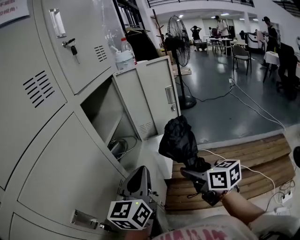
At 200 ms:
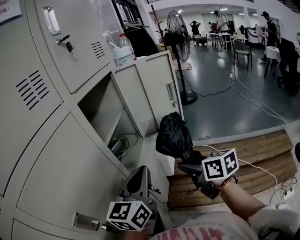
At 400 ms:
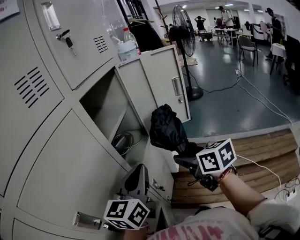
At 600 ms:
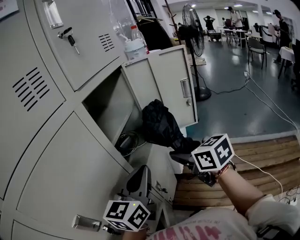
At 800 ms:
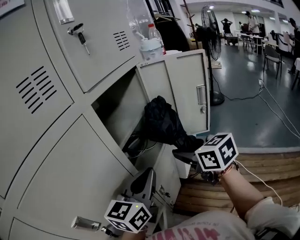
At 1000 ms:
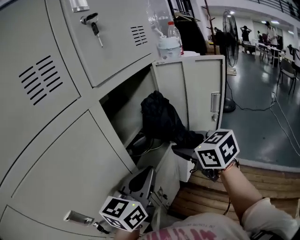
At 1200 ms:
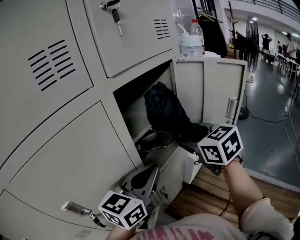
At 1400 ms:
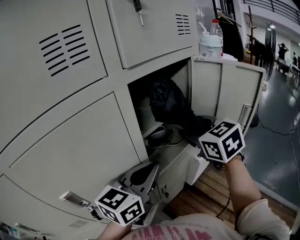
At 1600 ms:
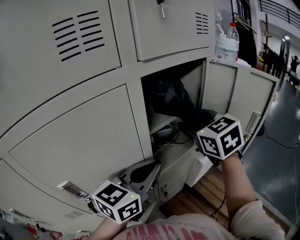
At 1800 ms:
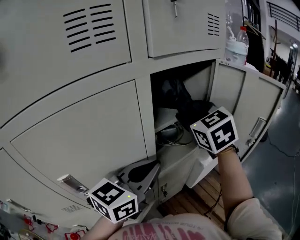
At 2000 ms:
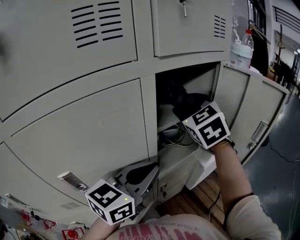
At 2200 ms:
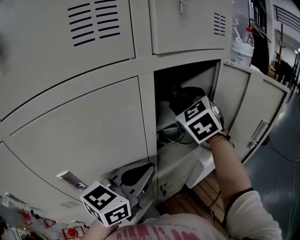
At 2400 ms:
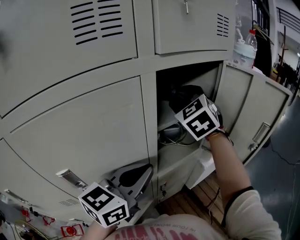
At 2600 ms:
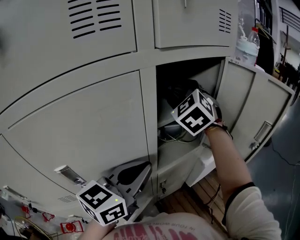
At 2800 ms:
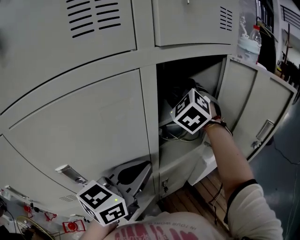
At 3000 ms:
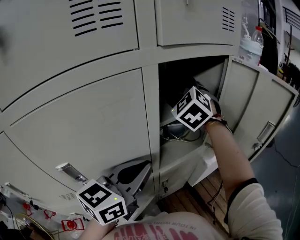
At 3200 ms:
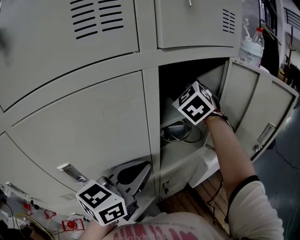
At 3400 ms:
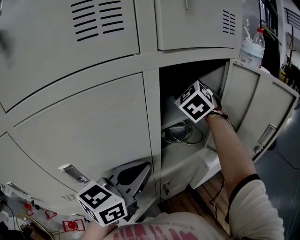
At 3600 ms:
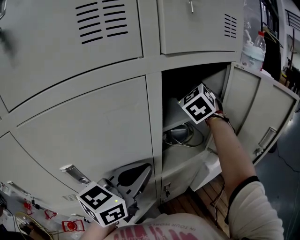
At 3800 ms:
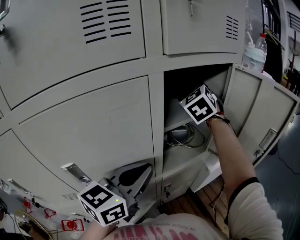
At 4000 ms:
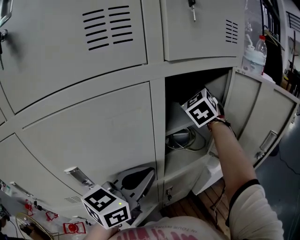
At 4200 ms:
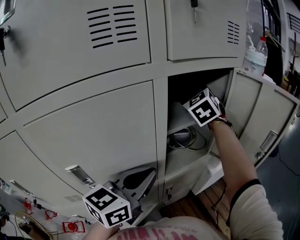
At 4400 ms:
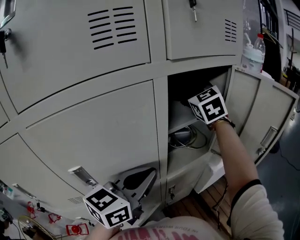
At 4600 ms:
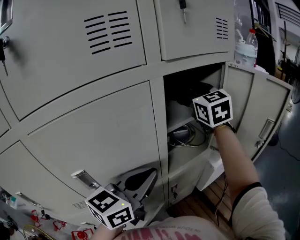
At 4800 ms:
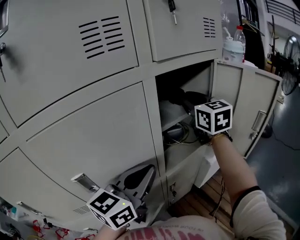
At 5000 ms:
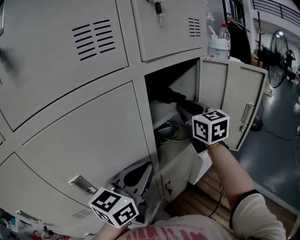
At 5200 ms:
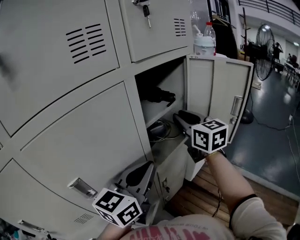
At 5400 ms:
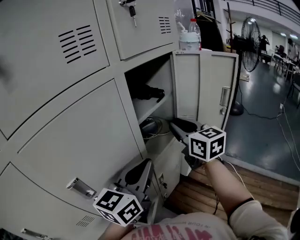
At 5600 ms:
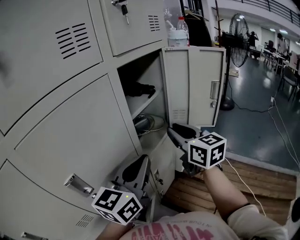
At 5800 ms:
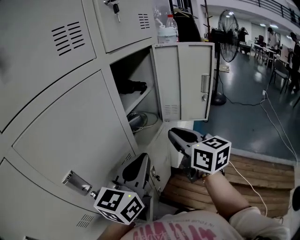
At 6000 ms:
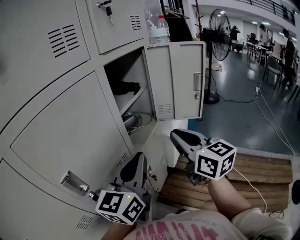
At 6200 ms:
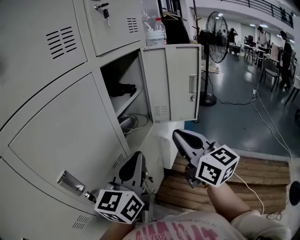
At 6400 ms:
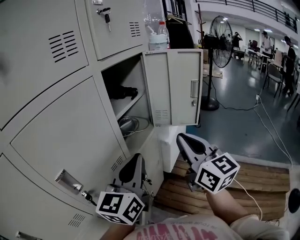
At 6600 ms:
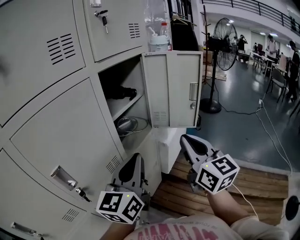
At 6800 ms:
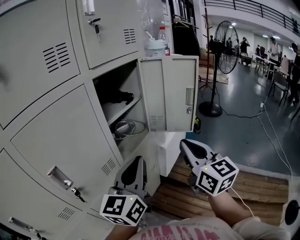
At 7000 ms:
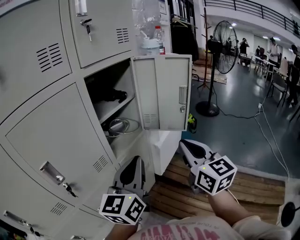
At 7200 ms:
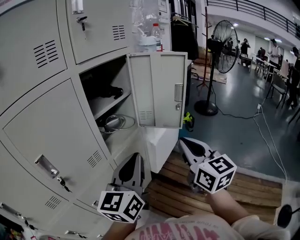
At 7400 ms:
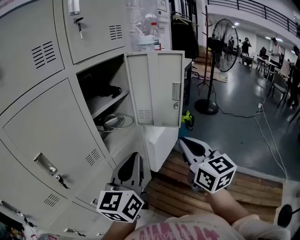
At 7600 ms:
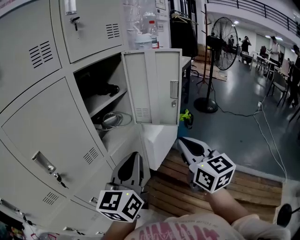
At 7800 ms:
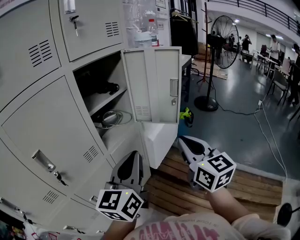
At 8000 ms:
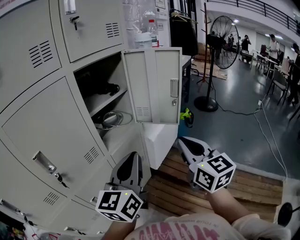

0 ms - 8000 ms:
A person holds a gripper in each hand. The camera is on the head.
0 ms - 1600 ms: The right gripper heads forward, to the left and upward, covering roughly 30 cm, and twists some 50 degrees counterclockwise, seen from behind. Meanwhile the left gripper travels forward by approximately 10 cm.
1600 ms - 3200 ms: The right gripper heads to the left and forward, covering approximately 15 cm, and changes its angle by about 30 degrees.
3200 ms - 4800 ms: The right gripper moves to the right, about 5 cm, and rotates around the line of its fingers by about 40 degrees, clockwise from behind.
4800 ms - 6400 ms: The left gripper shifts about 10 cm to the right and backward. The right gripper moves backward and to the right, roughly 30 cm, swivels roughly 20 degrees, and closes up.
6400 ms - 8000 ms: The two grippers go roughly 10 cm to the right.

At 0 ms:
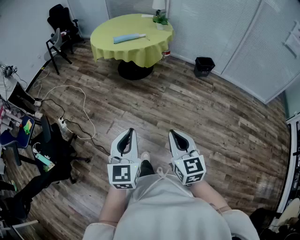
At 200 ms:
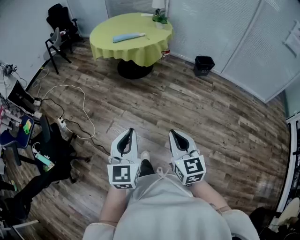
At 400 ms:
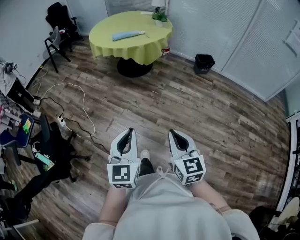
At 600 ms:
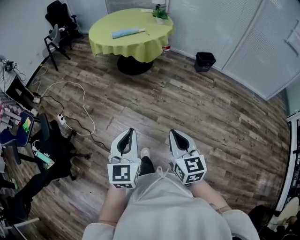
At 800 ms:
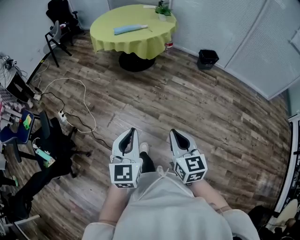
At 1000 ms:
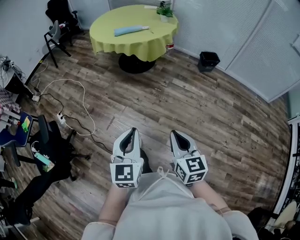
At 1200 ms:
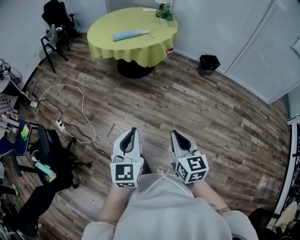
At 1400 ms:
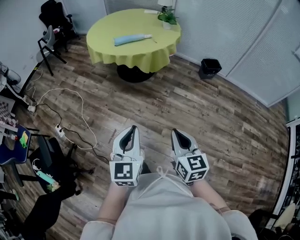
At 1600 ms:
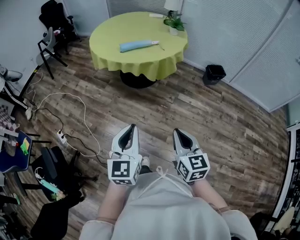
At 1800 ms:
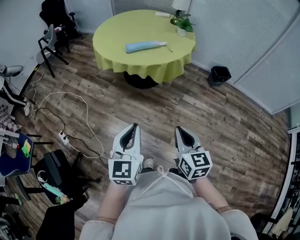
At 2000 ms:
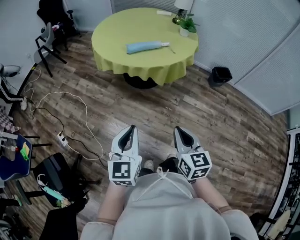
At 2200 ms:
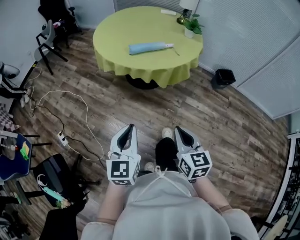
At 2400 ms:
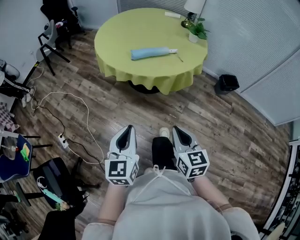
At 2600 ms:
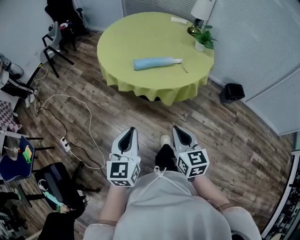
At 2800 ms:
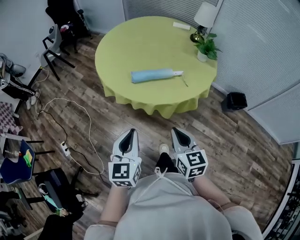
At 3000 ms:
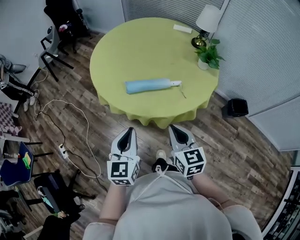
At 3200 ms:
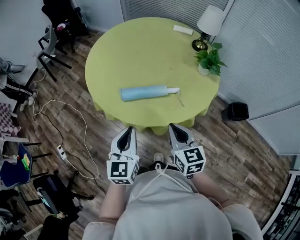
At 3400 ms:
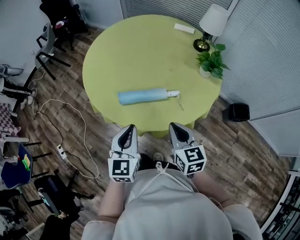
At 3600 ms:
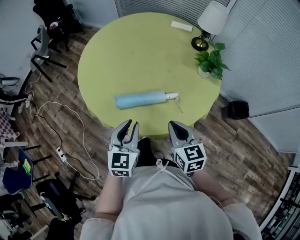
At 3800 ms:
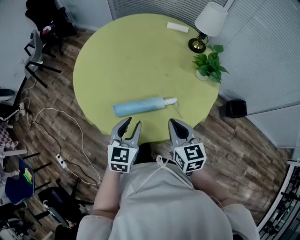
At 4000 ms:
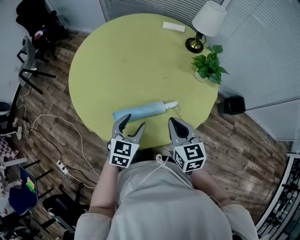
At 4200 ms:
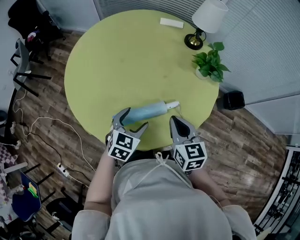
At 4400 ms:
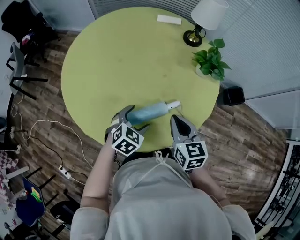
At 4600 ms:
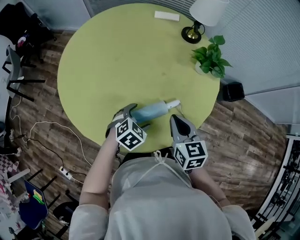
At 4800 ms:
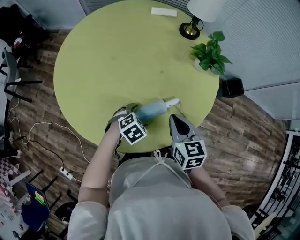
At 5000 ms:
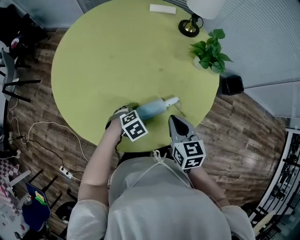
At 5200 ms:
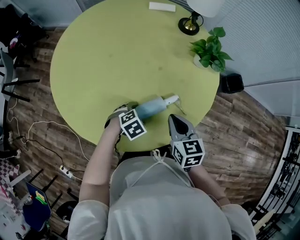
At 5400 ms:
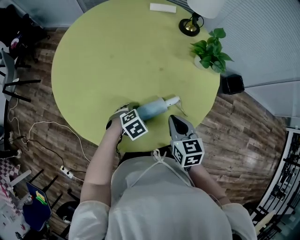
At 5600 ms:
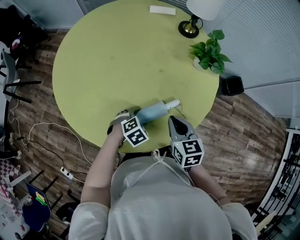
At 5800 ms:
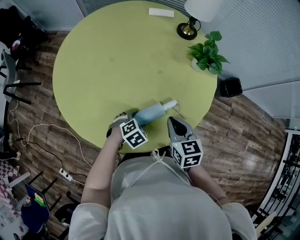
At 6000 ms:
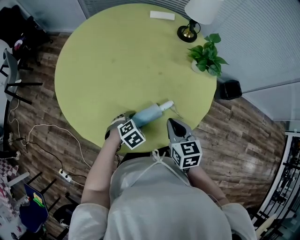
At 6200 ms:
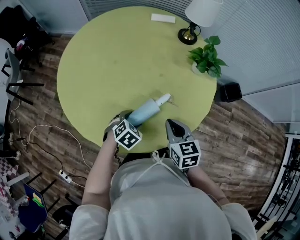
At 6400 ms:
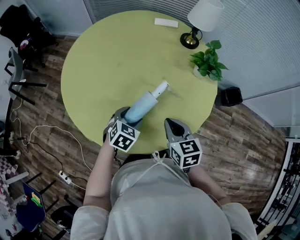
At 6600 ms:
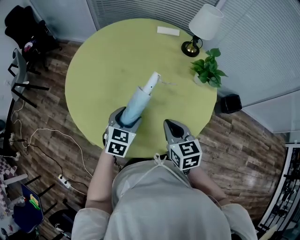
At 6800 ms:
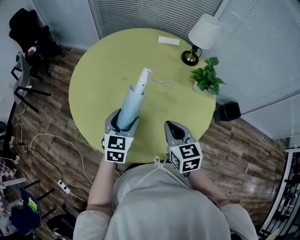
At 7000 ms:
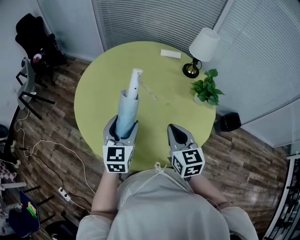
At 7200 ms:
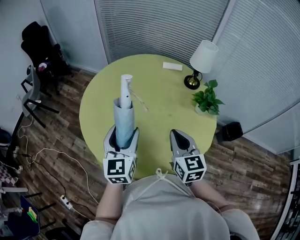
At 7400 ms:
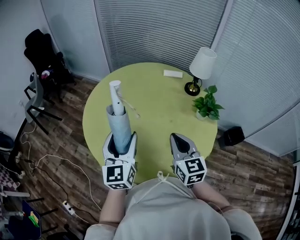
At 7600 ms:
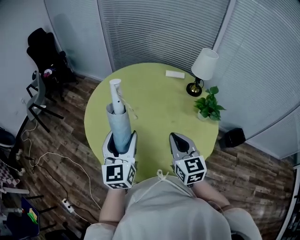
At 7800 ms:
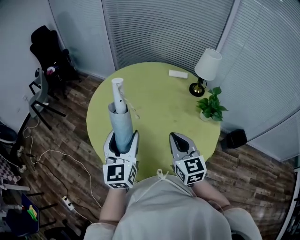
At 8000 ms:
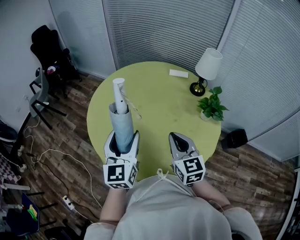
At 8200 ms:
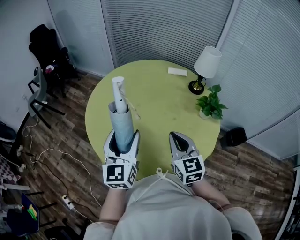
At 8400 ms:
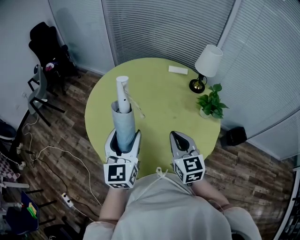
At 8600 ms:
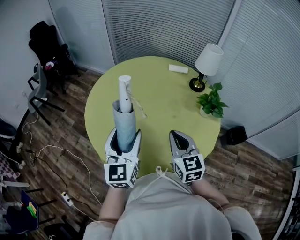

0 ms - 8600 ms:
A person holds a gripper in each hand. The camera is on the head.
0 ms - 1400 ms: The two grippers go about 25 cm forward.
1400 ms - 2800 ms: The two grippers travel together, forward, approximately 50 cm.
2800 ms - 4400 ms: The left gripper moves roughly 50 cm, points its fingers roughly 40 degrees further downward, and opens its fingers. The right gripper ends up approximately 40 cm from where it was.
4400 ms - 5800 ms: The left gripper heads downward, covering roughly 10 cm, and changes its angle by approximately 20 degrees, while the right gripper heads downward, covering some 5 cm.
5800 ms - 7200 ms: The left gripper goes approximately 35 cm upward, and tilts its fingers approximately 60 degrees upward; the right gripper heads upward, covering roughly 15 cm, and changes its angle by about 20 degrees.
7200 ms - 8600 ms: The grippers move only a little.

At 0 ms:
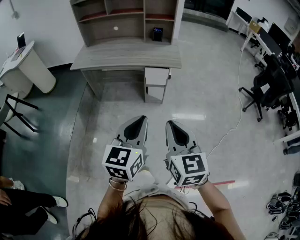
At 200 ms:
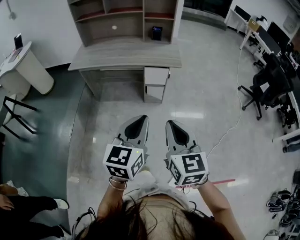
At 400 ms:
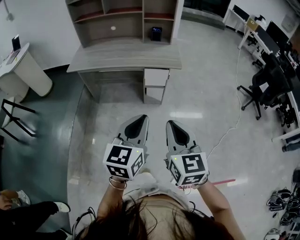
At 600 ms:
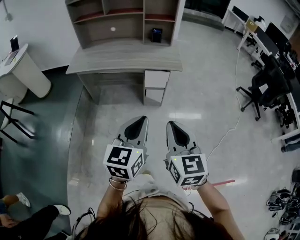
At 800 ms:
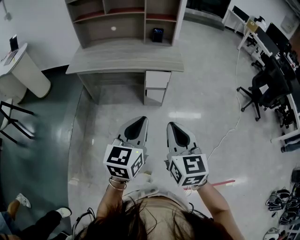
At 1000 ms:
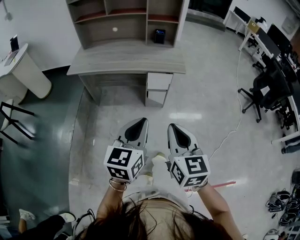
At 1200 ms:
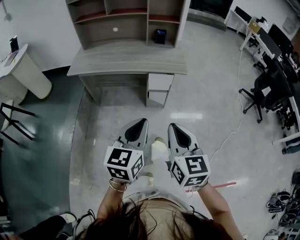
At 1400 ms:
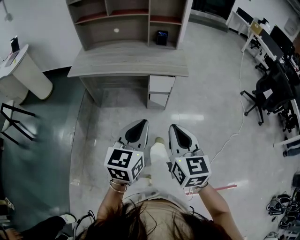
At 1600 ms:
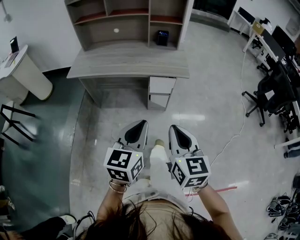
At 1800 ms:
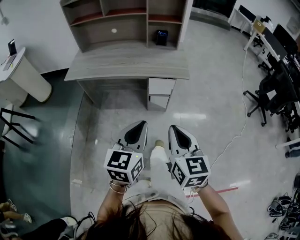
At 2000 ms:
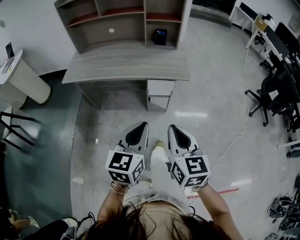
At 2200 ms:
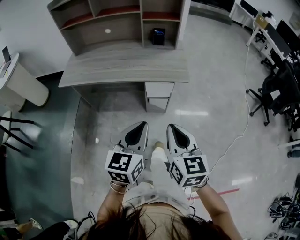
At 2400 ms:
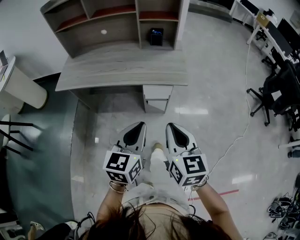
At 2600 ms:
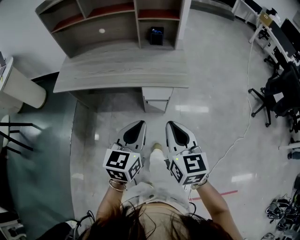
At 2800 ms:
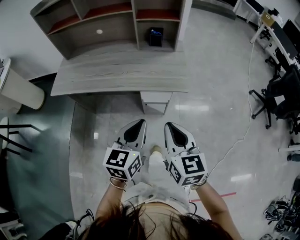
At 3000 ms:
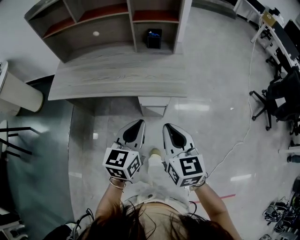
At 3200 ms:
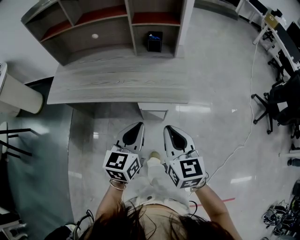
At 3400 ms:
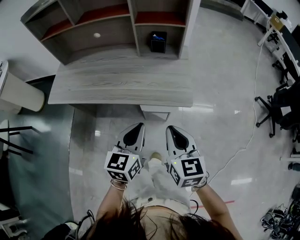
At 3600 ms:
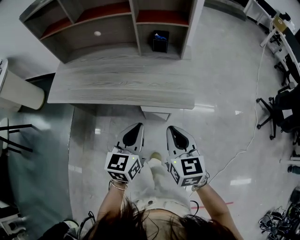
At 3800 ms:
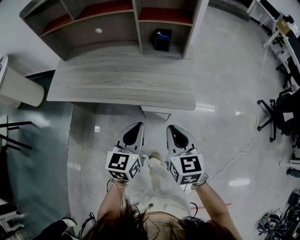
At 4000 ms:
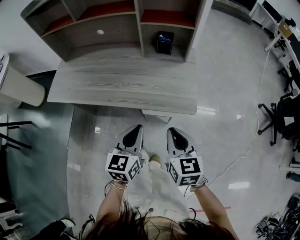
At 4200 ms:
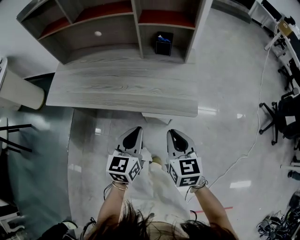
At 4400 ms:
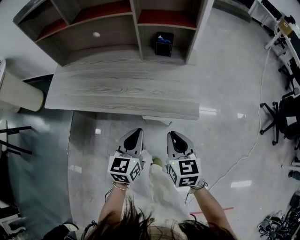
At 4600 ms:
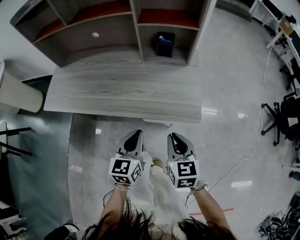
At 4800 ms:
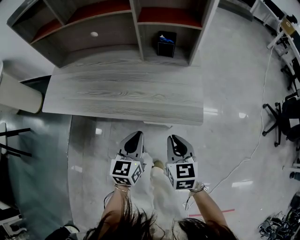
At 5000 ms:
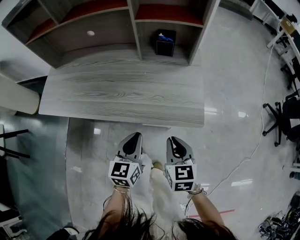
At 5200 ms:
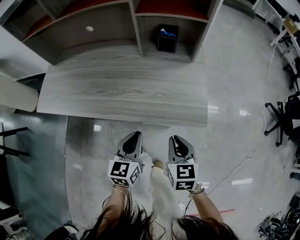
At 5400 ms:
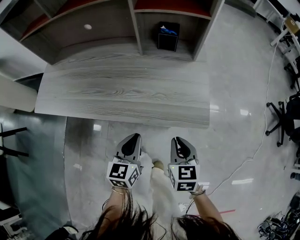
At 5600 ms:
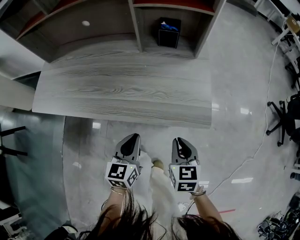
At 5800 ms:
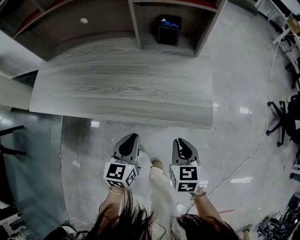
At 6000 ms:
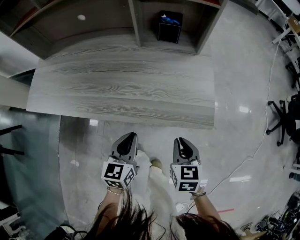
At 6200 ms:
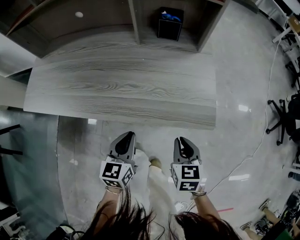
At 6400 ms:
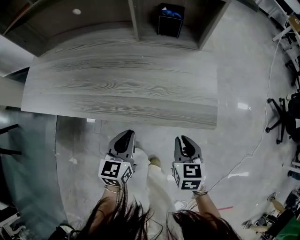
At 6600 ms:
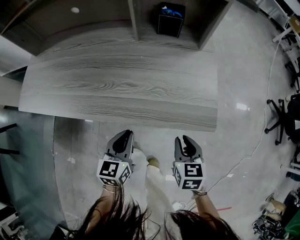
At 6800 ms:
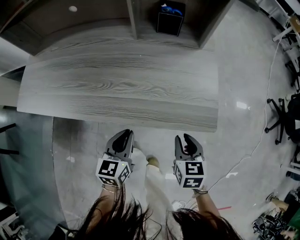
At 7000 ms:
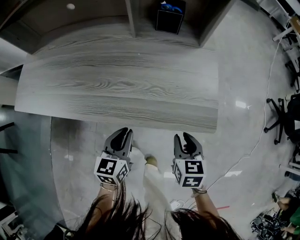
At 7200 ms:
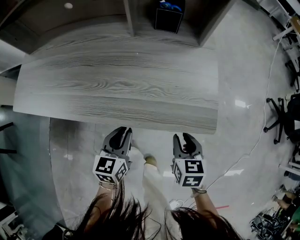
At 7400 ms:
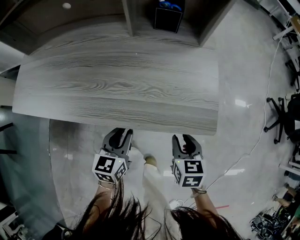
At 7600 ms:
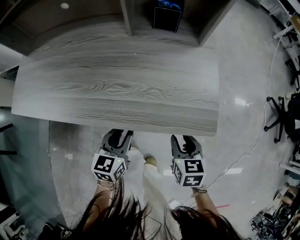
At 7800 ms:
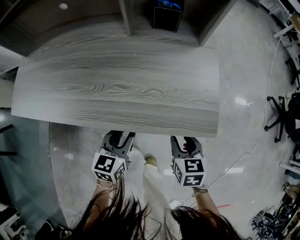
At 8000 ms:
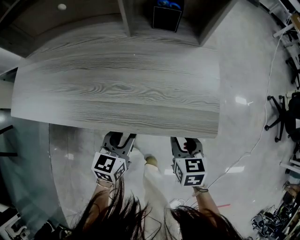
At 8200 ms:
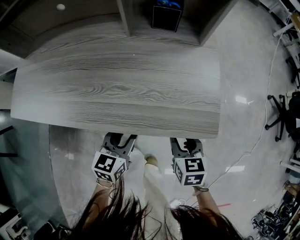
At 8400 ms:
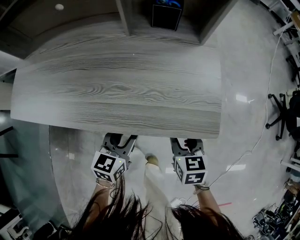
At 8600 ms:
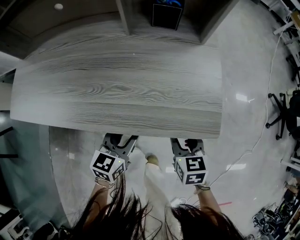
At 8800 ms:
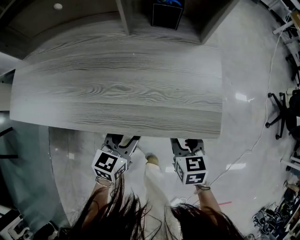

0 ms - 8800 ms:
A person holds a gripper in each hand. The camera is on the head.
0 ms - 1400 ms: The two grippers go about 10 cm forward and to the left.
1400 ms - 3000 ms: The grippers both shift forward by some 25 cm.
3000 ms - 4400 ms: Both grippers travel together forward and downward, approximately 15 cm.
4400 ms - 5800 ms: Both grippers travel together downward, about 15 cm.
5800 ms - 7400 ms: Both grippers travel together downward, about 5 cm. The right gripper opens.
7400 ms - 8800 ms: The left gripper opens up.
